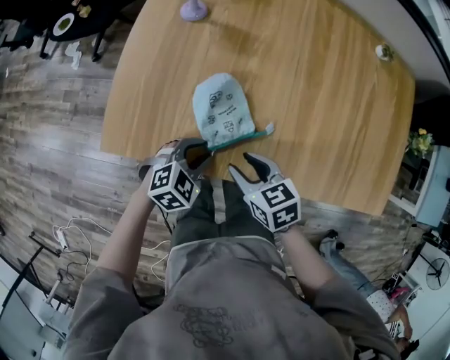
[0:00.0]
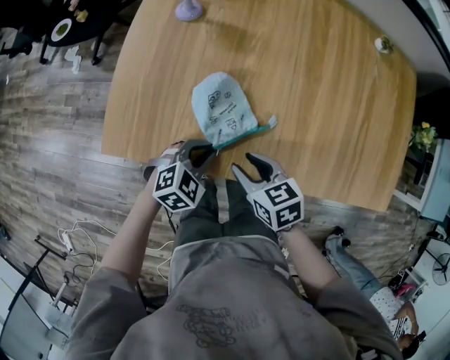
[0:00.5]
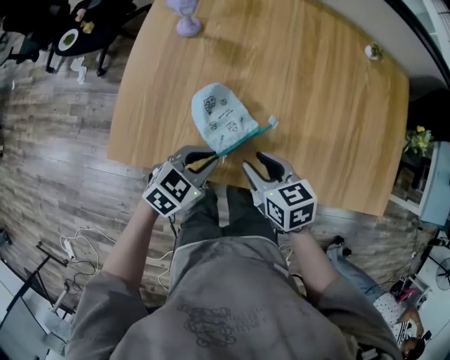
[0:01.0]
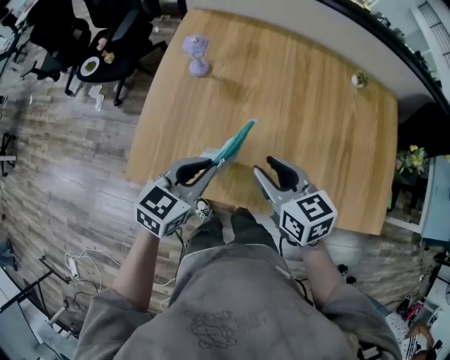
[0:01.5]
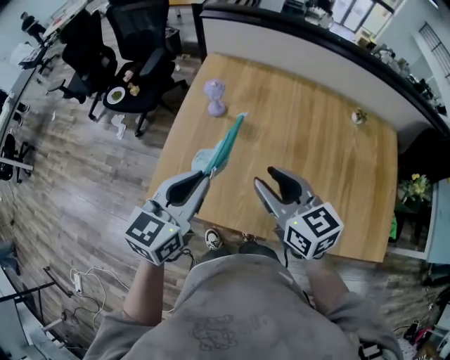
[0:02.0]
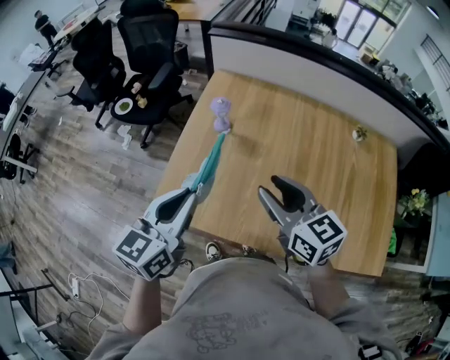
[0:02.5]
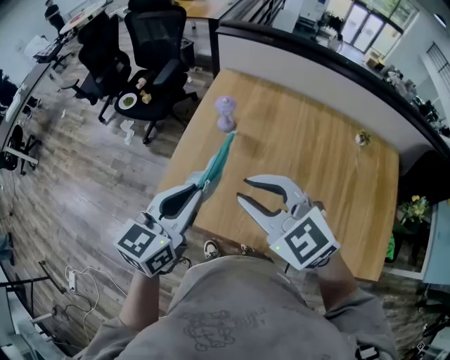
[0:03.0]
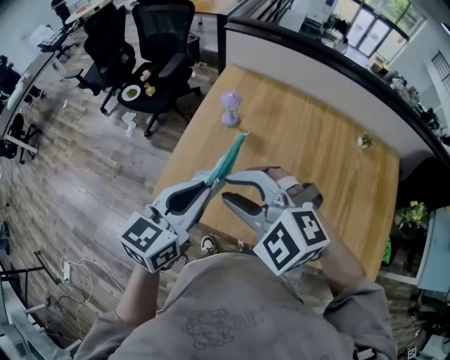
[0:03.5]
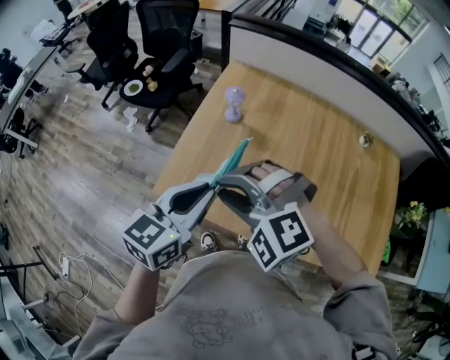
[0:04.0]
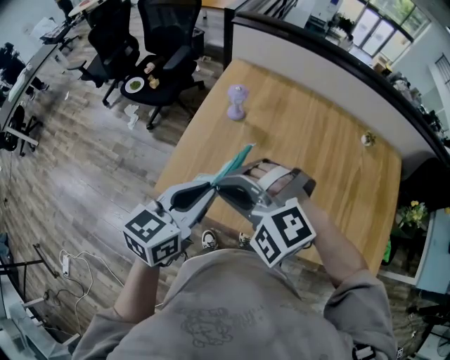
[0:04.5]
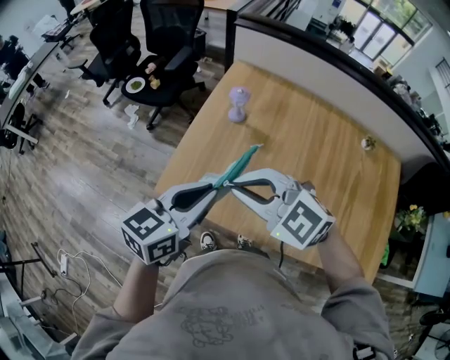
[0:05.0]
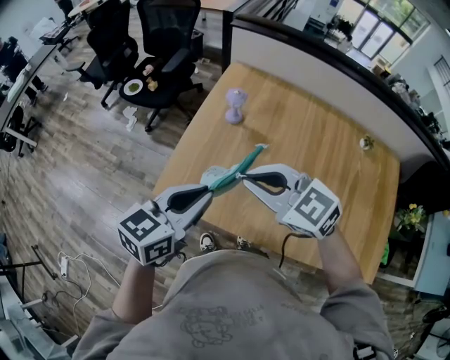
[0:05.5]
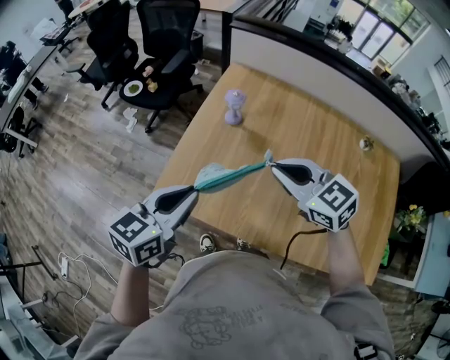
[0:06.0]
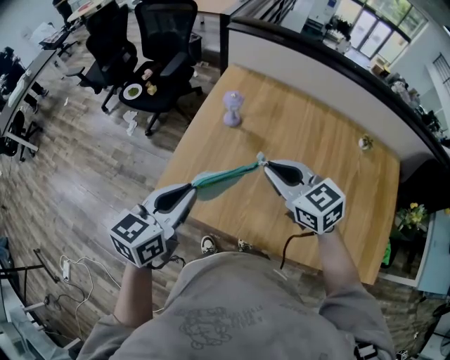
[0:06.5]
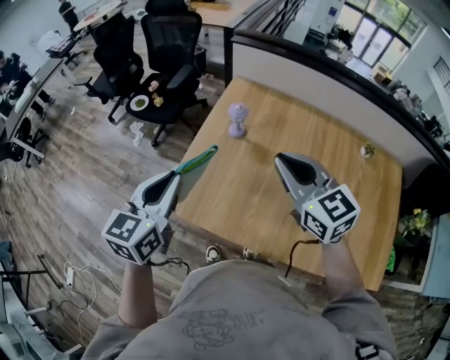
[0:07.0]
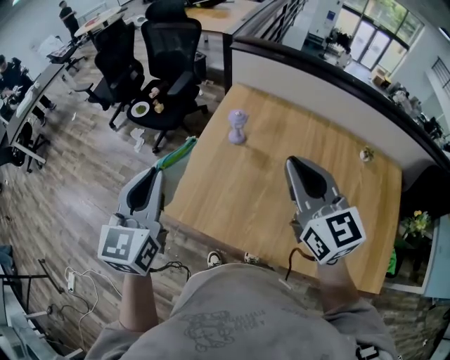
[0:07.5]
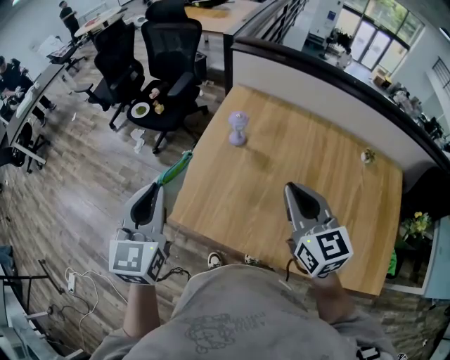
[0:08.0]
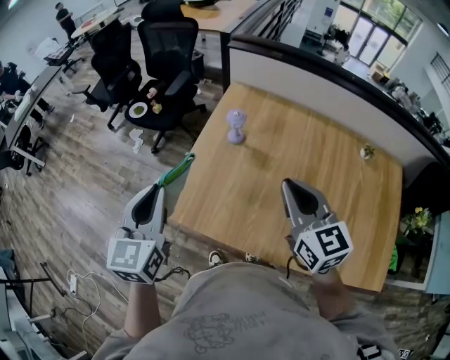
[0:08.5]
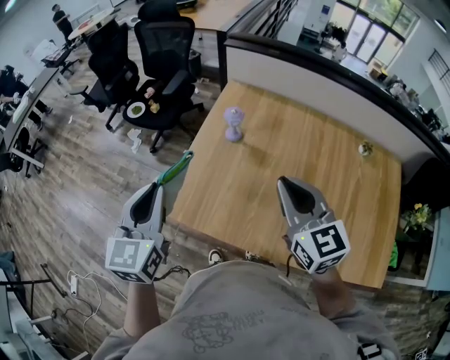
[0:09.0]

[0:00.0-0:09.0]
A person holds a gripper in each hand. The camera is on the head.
0:00.0 to 0:02.0: The grippers both shift upward by some 30 cm. The left gripper tips its fingers upward by about 40 degrees, and closes. Meanwhile the right gripper changes its angle by some 30 degrees.
0:02.0 to 0:04.5: The right gripper goes approximately 15 cm to the left, rolls counterclockwise, seen from behind, by some 80 degrees, and closes.
0:04.5 to 0:07.0: The right gripper goes some 15 cm to the right and forward, and rotates around the line of its fingers by roughly 60 degrees, clockwise from behind; the left gripper is displaced to the left and forward by roughly 10 cm, and rotates about 20 degrees.

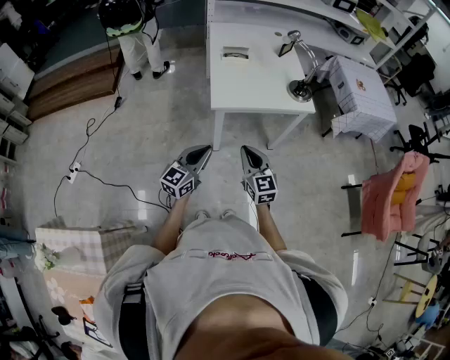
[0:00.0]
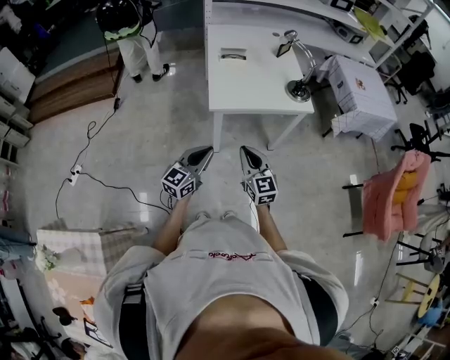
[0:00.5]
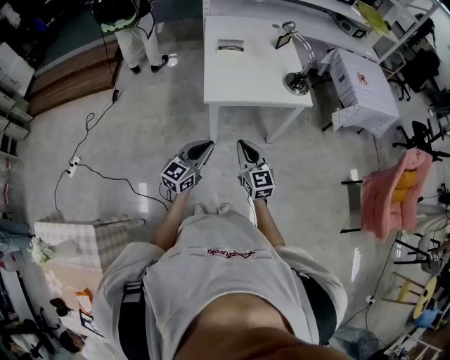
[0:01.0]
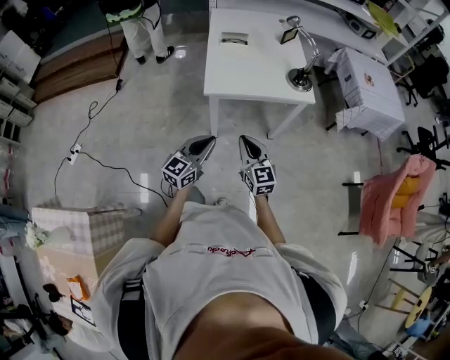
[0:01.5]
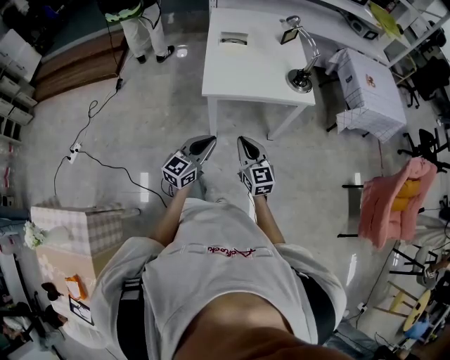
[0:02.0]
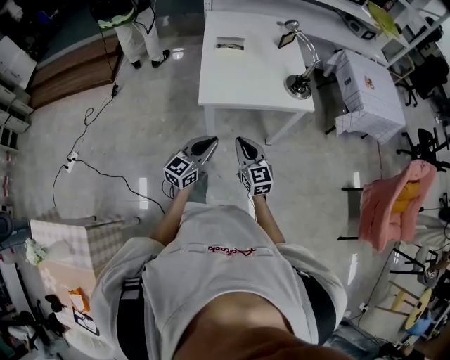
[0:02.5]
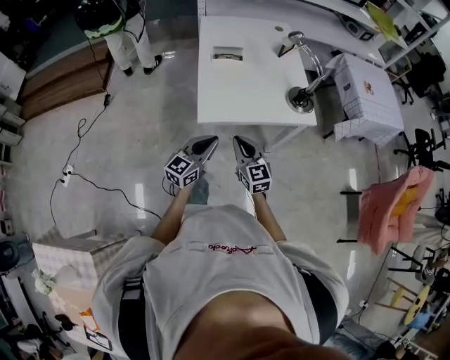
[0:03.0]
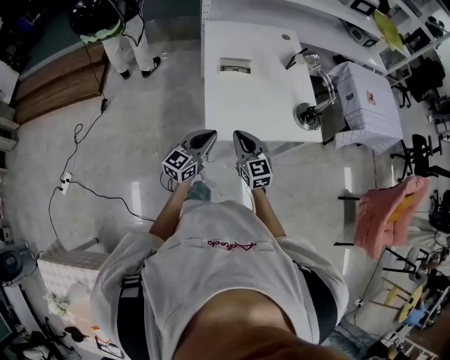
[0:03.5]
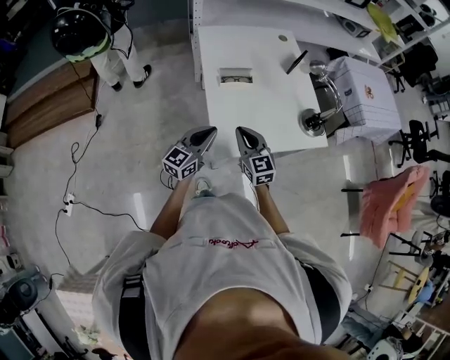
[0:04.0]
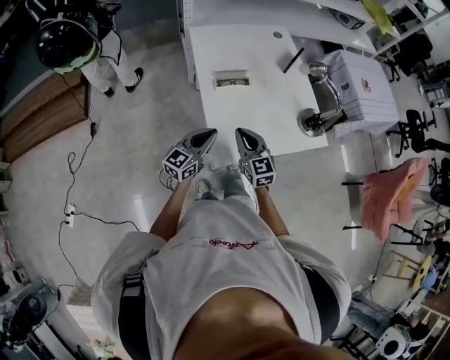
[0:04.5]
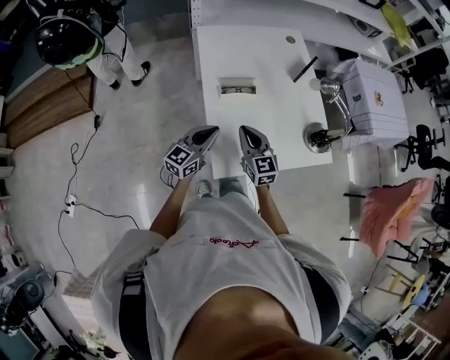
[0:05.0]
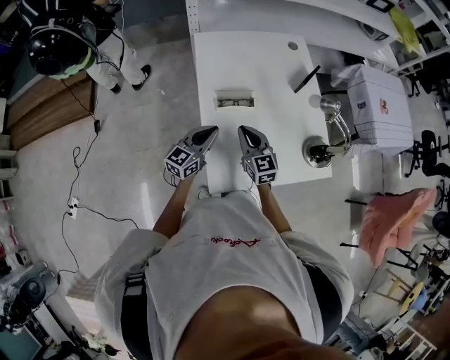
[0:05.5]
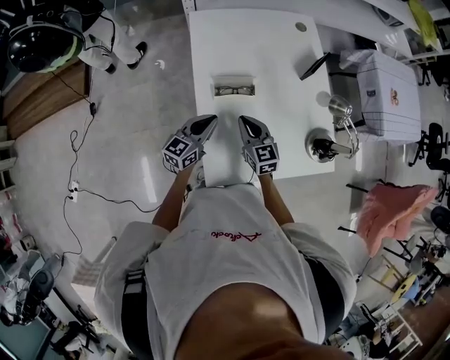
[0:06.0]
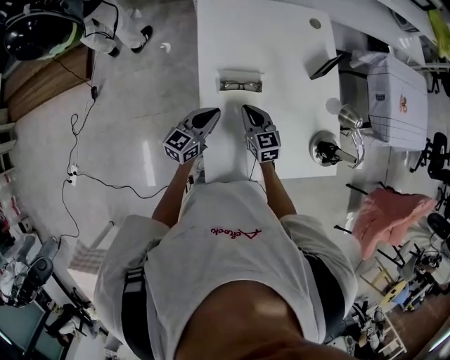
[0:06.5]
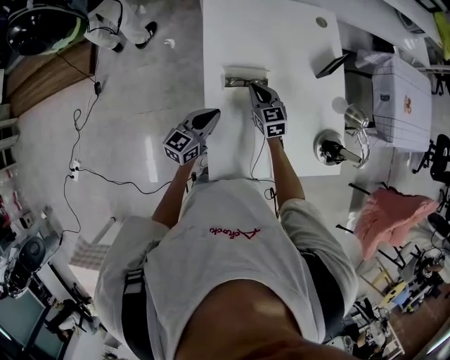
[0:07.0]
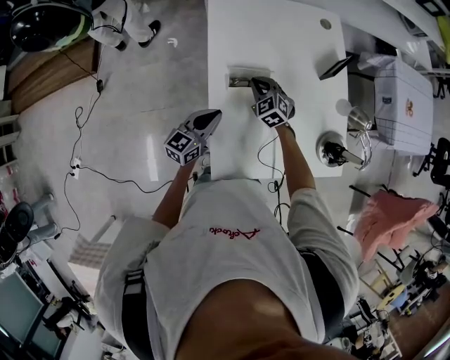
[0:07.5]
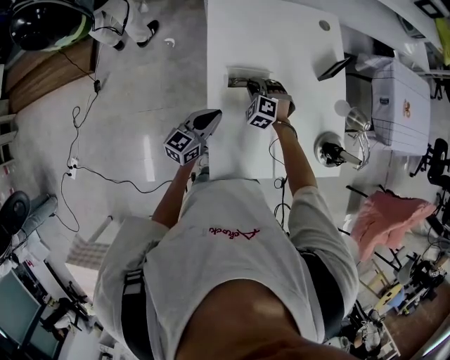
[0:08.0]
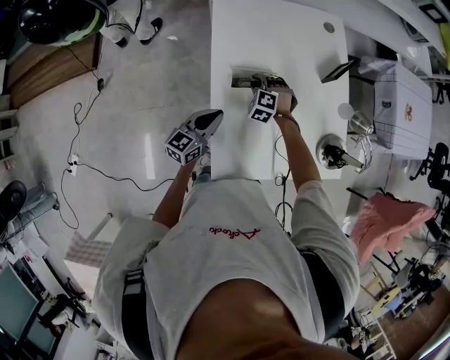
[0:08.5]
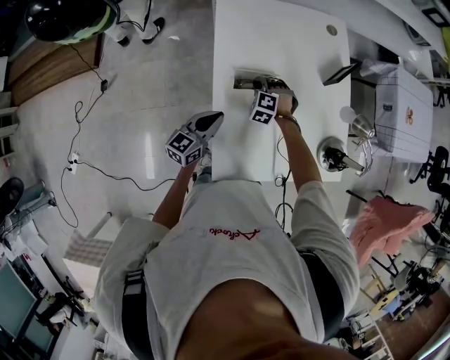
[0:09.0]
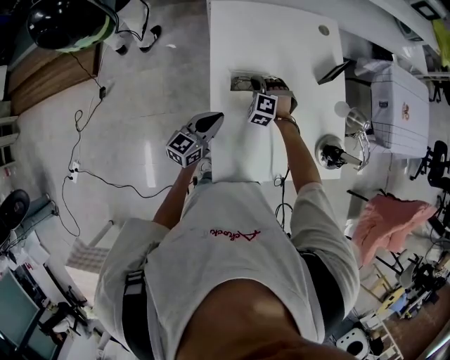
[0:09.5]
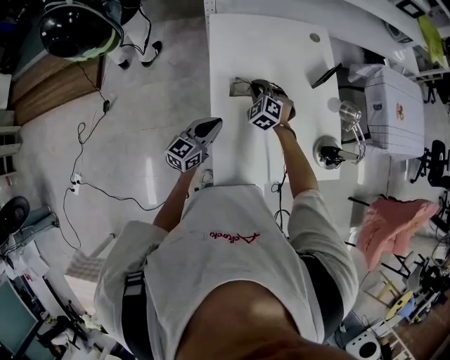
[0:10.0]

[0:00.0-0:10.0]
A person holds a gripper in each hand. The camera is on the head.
0:00.0 to 0:02.0: The grippers both shift to the right by some 5 cm.
0:02.0 to 0:04.0: Both grippers move forward and to the left, approximately 35 cm.
0:04.0 to 0:06.0: Both grippers travel together forward and downward, some 20 cm.
0:06.0 to 0:08.0: The right gripper moves forward and downward, approximately 15 cm, and twists some 60 degrees counterclockwise, seen from behind.
0:08.0 to 0:10.0: The right gripper heads upward, covering roughly 5 cm.

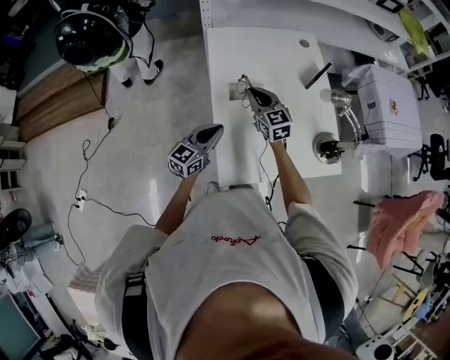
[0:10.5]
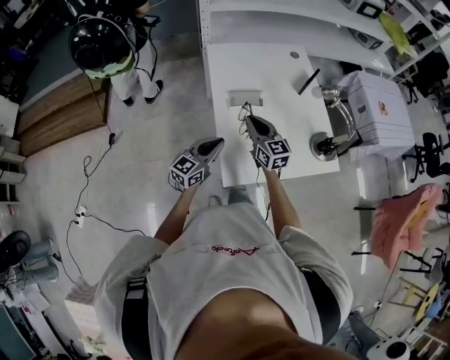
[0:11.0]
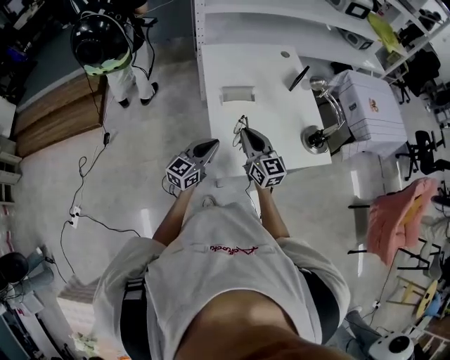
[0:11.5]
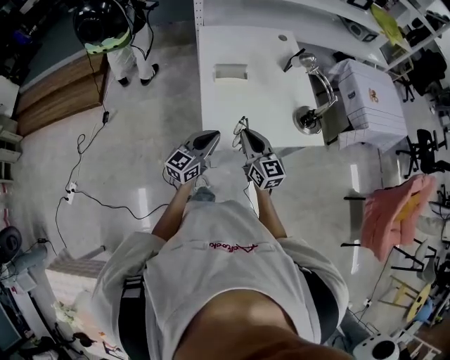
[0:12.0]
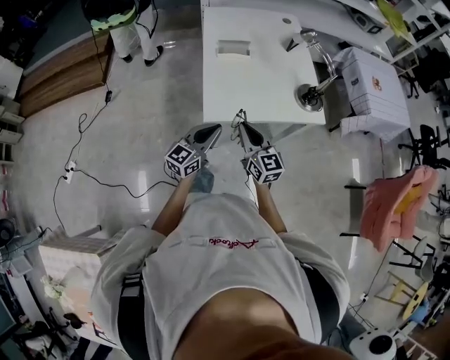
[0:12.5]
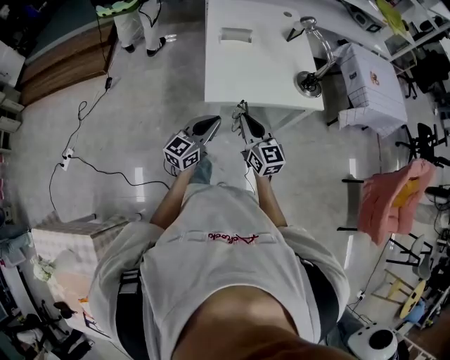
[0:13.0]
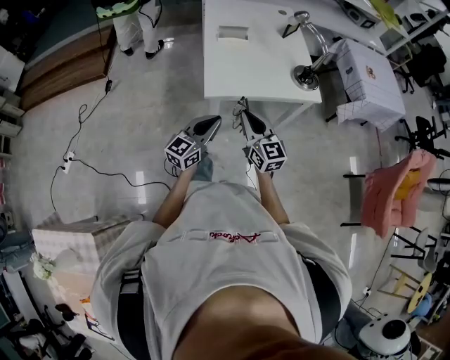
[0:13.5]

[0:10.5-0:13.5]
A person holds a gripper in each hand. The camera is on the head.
0:10.5 to 0:12.0: The right gripper shifts some 30 cm backward. Meanwhile the left gripper is displaced backward and to the right by approximately 20 cm.
0:12.0 to 0:13.5: Both grippers travel together backward, roughly 15 cm.

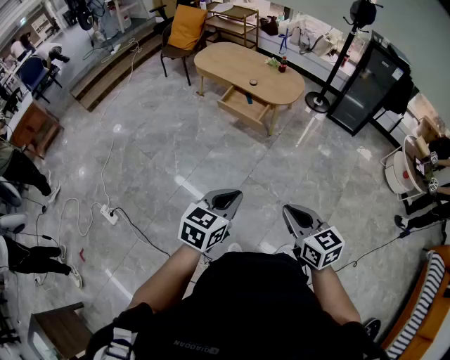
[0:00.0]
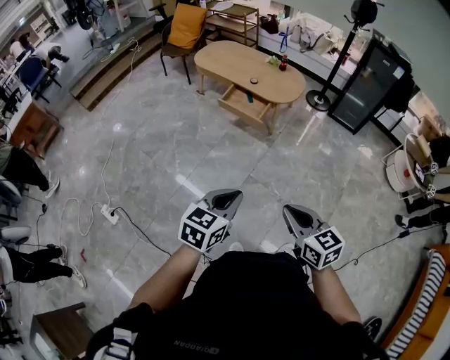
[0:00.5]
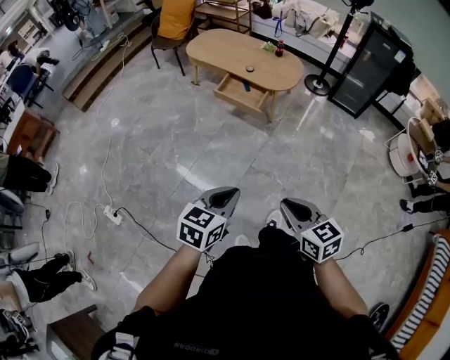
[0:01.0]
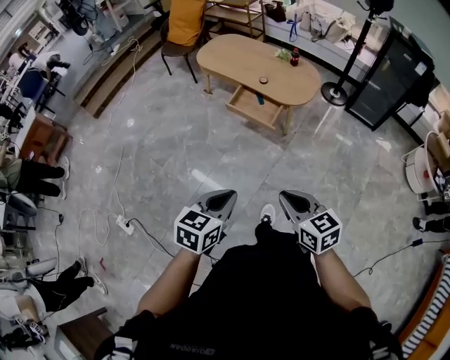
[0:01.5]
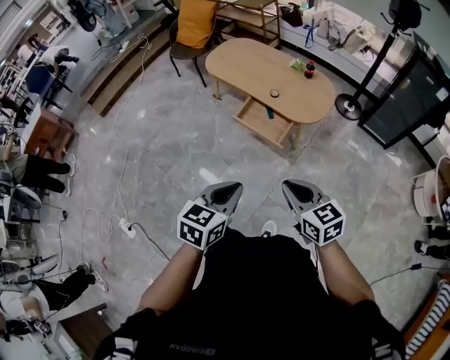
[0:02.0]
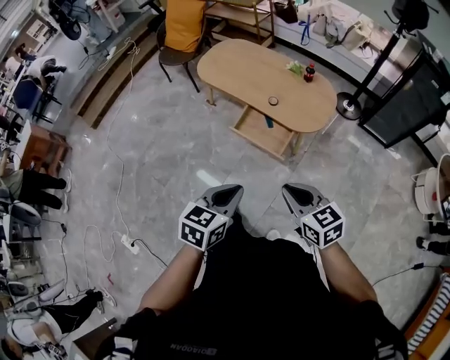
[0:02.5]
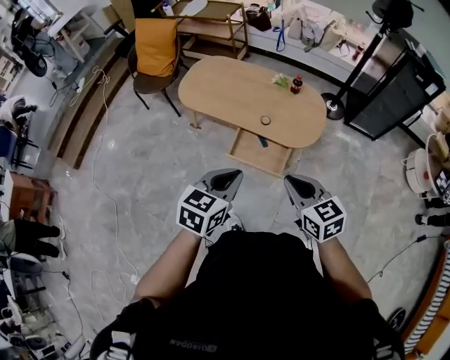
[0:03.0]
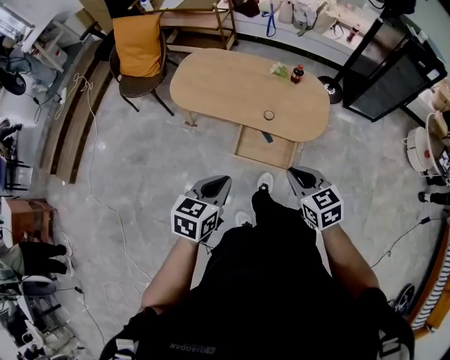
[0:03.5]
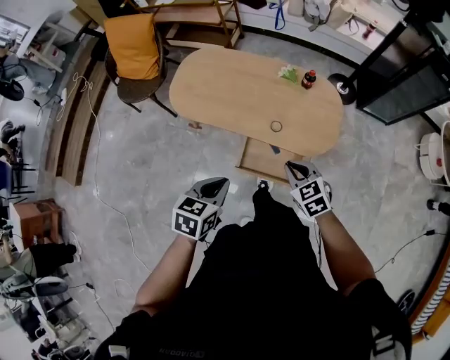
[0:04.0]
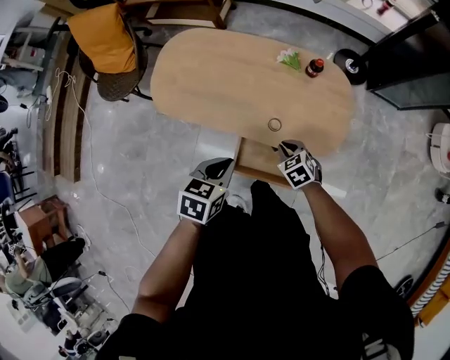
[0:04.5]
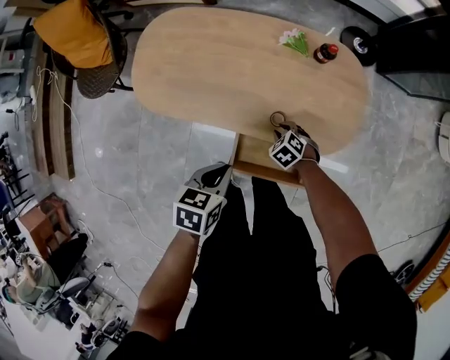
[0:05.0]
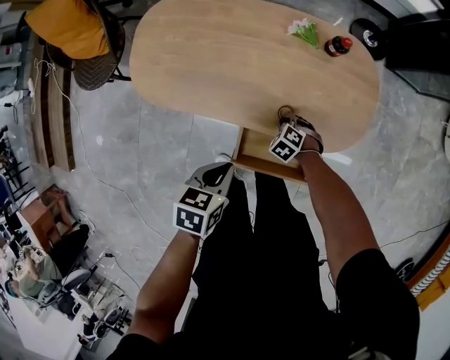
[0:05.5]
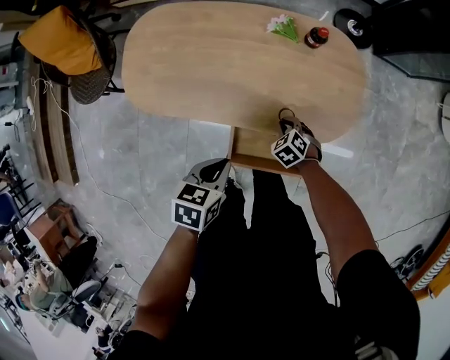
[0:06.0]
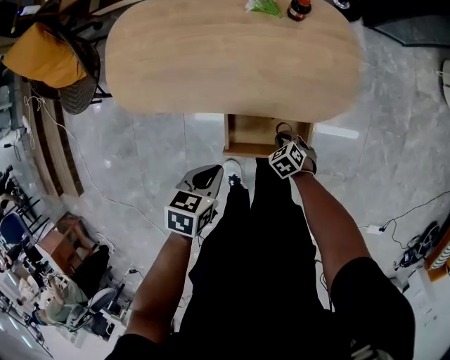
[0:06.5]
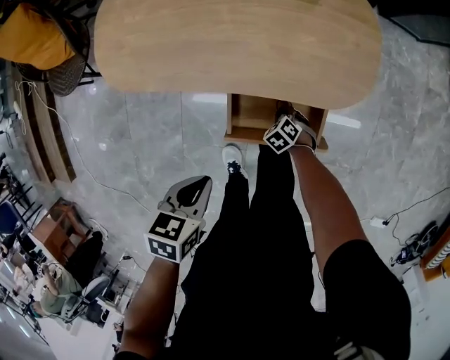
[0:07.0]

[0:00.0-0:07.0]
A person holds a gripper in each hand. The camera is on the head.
0:00.0 to 0:02.0: Both grippers move forward, about 35 cm.
0:02.0 to 0:03.5: The two grippers go about 35 cm forward and to the left. The right gripper swivels about 20 degrees.
0:03.5 to 0:05.0: The right gripper goes approximately 50 cm downward and forward, and tilts its fingers approximately 40 degrees downward. The left gripper is displaced forward and downward by about 35 cm, and swivels some 30 degrees.
0:05.0 to 0:07.0: The left gripper moves some 10 cm. Meanwhile the right gripper moves up and down over about 15 cm, changing direction 2 times.
